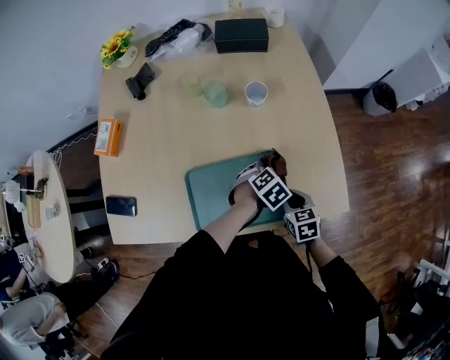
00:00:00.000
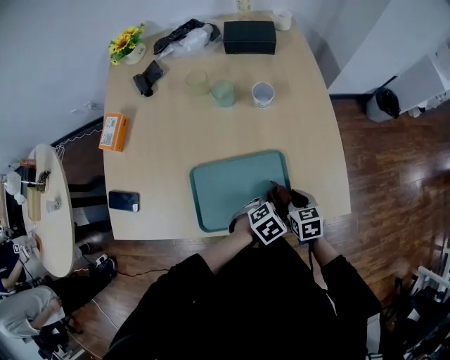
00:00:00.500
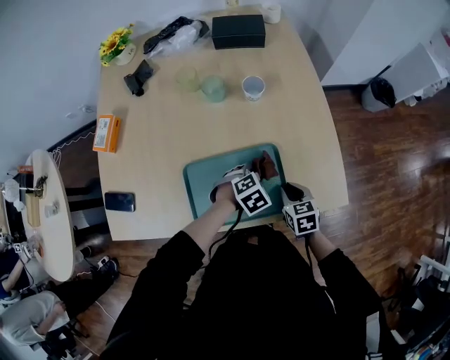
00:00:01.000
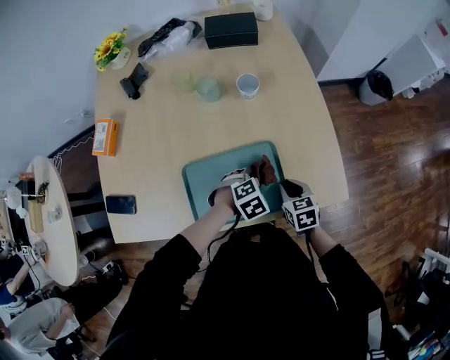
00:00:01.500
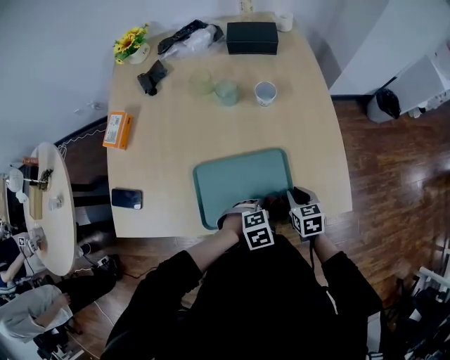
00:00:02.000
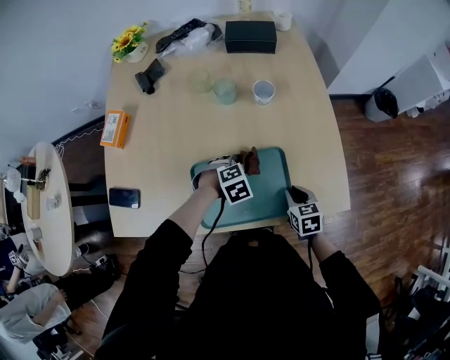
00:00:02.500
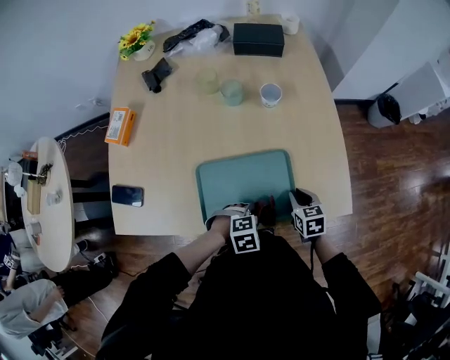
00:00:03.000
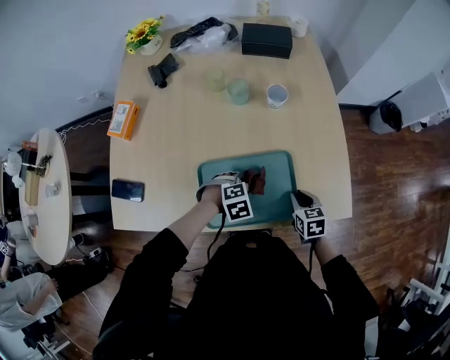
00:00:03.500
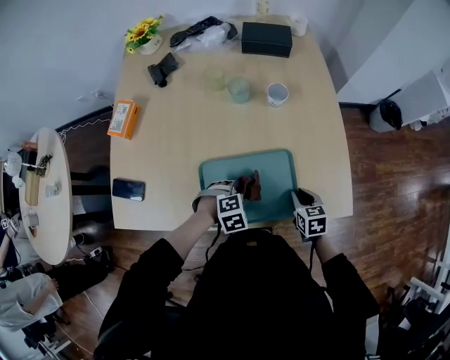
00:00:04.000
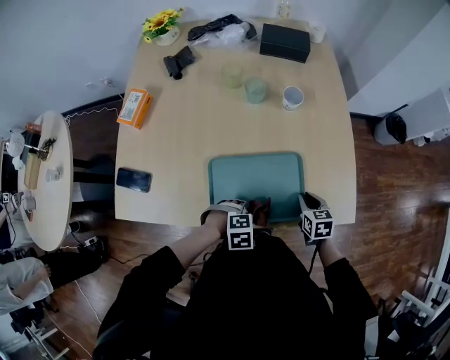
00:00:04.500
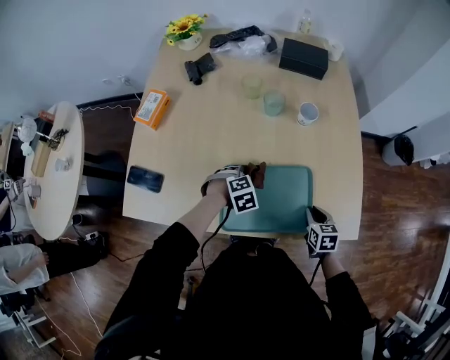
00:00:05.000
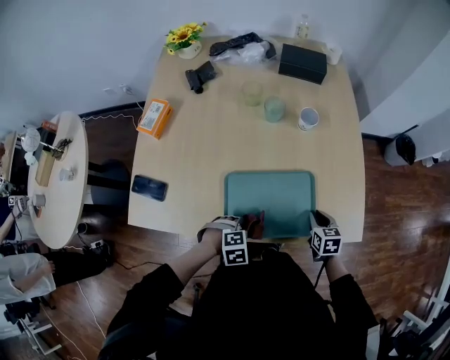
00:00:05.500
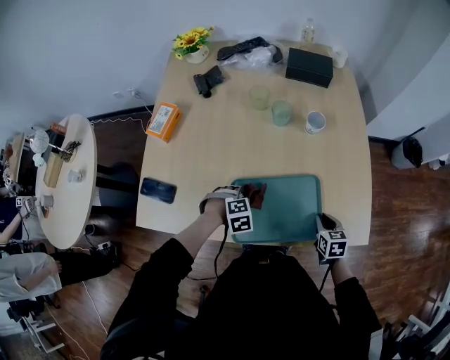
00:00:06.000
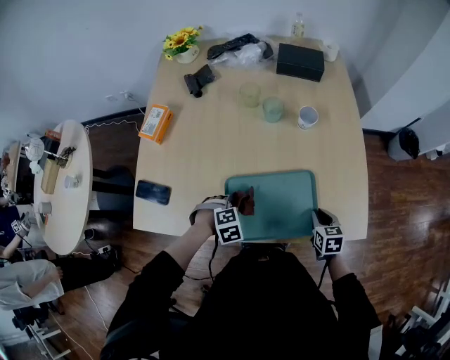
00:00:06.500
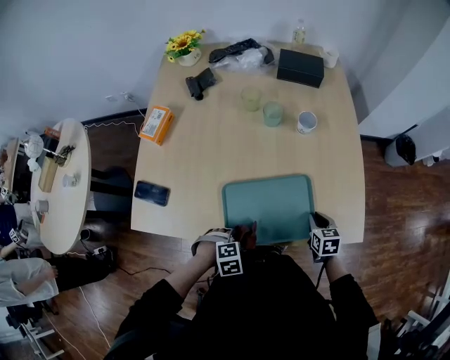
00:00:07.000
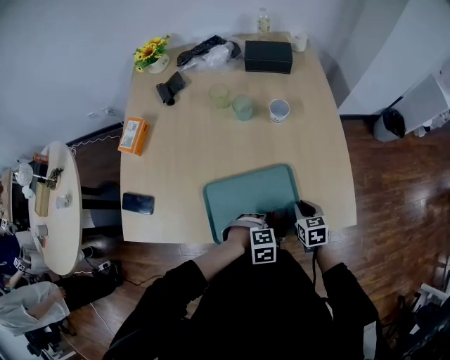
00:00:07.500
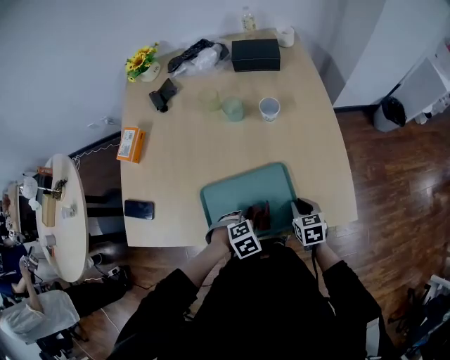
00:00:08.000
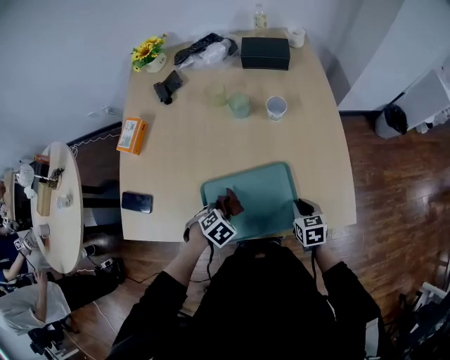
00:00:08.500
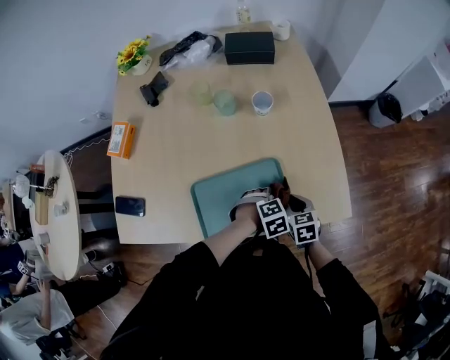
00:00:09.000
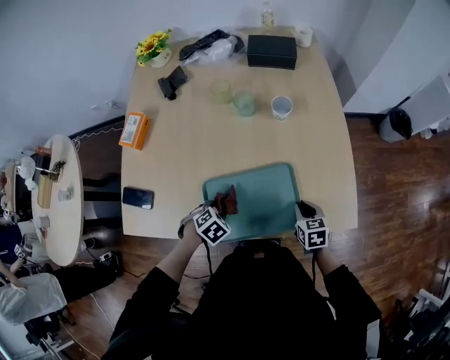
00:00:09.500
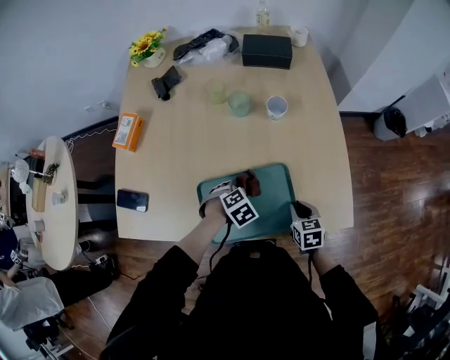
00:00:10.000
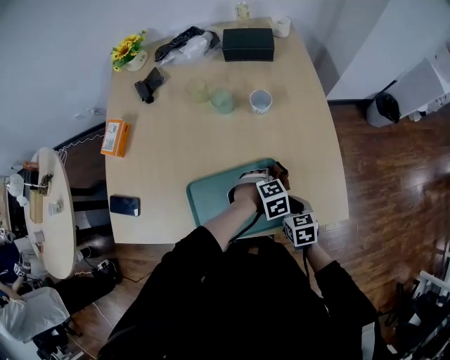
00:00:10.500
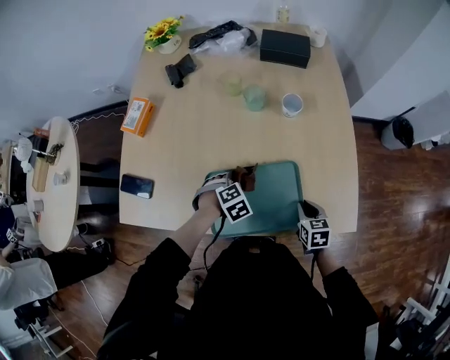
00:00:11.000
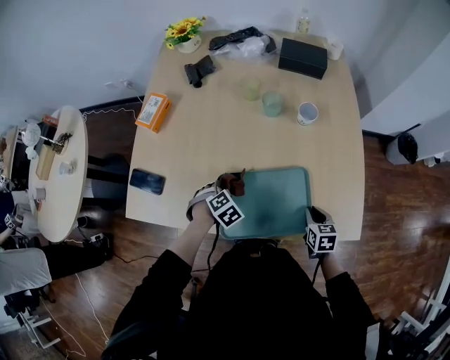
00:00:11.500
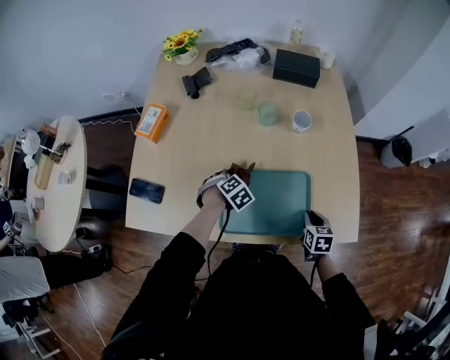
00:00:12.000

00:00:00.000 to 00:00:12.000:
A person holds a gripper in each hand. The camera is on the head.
00:00:00.000 to 00:00:02.000: The left gripper goes forward and backward, some 15 cm each way, reversing 2 times, and rotates approximately 20 degrees.
00:00:02.000 to 00:00:04.000: The left gripper goes forward and backward, roughly 15 cm each way, reversing 2 times.
00:00:04.000 to 00:00:06.000: The left gripper moves some 10 cm.
00:00:06.000 to 00:00:08.000: The left gripper ends up some 15 cm from where it was.
00:00:08.000 to 00:00:10.000: The left gripper shifts by approximately 10 cm.
00:00:10.000 to 00:00:12.000: The left gripper ends up about 10 cm from where it was.

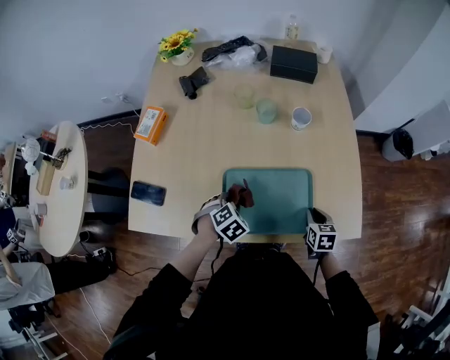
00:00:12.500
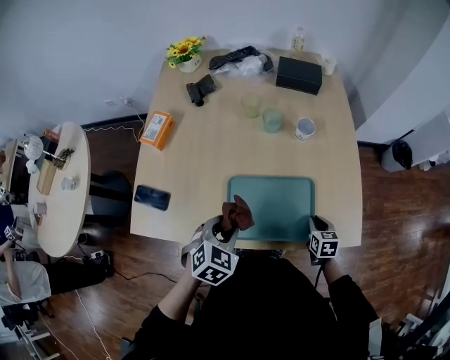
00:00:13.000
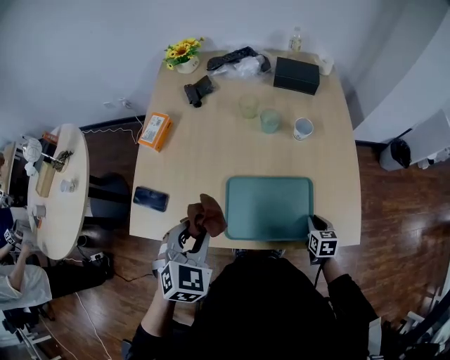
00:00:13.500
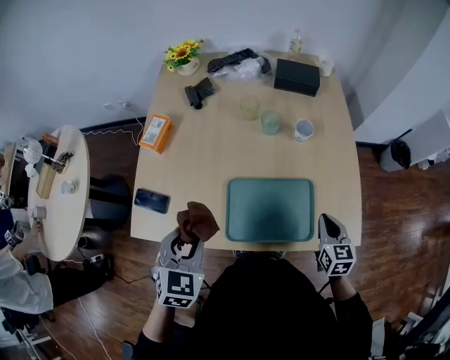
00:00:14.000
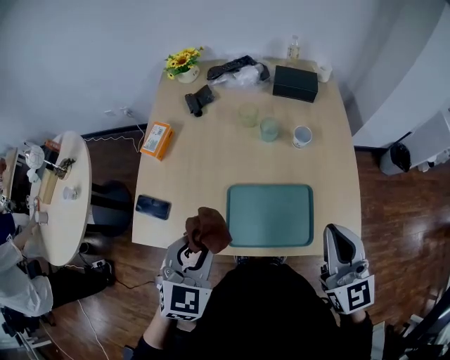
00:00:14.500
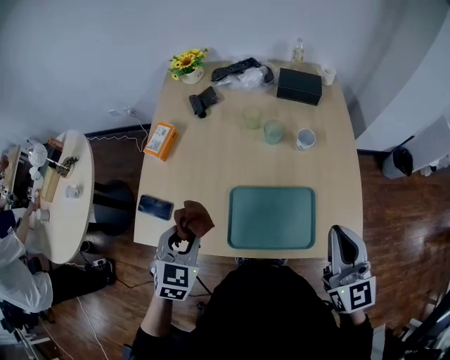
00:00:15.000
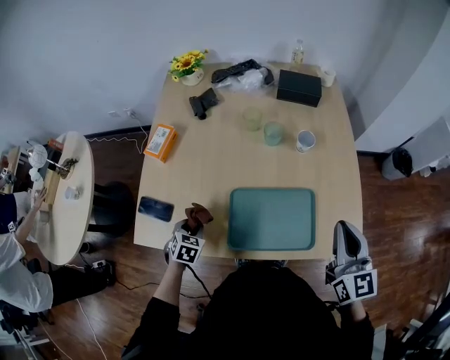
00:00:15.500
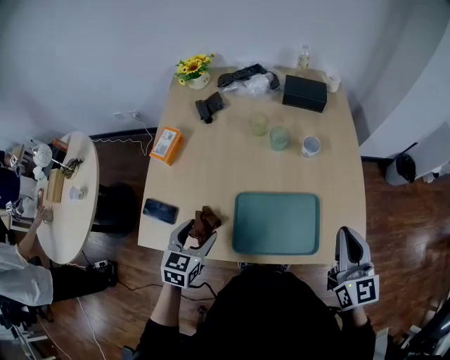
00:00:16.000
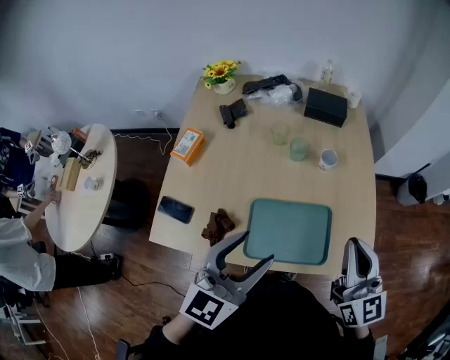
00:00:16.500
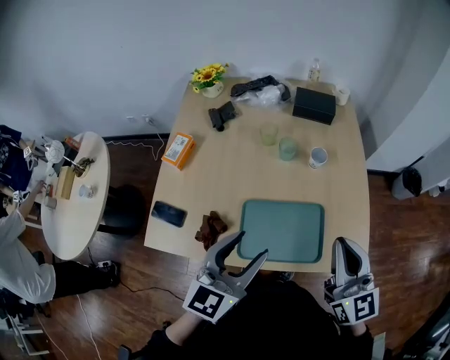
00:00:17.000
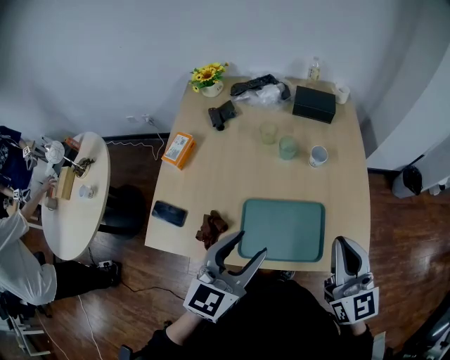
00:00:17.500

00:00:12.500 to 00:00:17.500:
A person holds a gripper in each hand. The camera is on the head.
00:00:12.500 to 00:00:15.000: The left gripper is displaced upward and to the left by some 25 cm, and points its fingers approximately 30 degrees further upward. Meanwhile the right gripper is displaced upward by some 35 cm, and points its fingers about 50 degrees further upward.
00:00:15.000 to 00:00:17.500: The left gripper swings up and down, roughly 35 cm each way, with 2 reversals, swivels roughly 40 degrees, and opens.

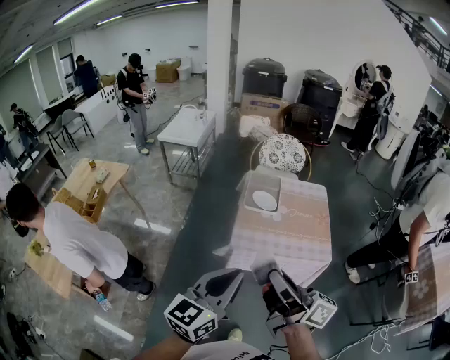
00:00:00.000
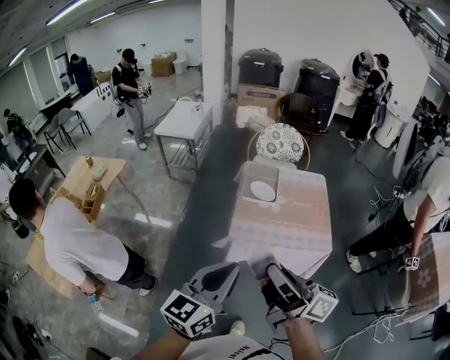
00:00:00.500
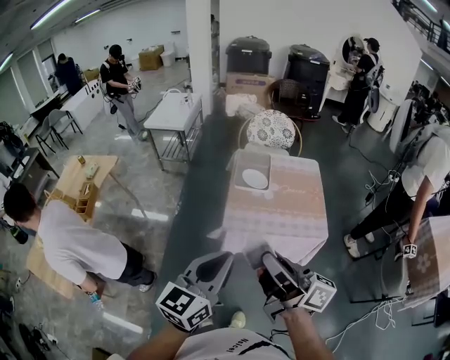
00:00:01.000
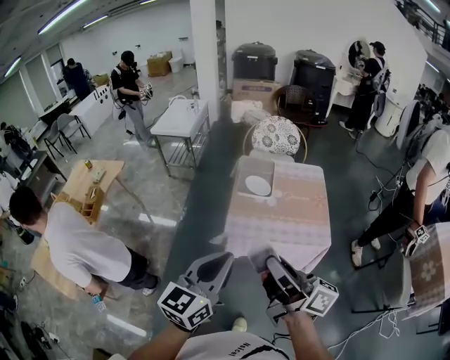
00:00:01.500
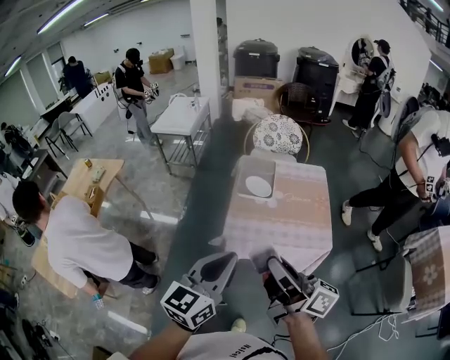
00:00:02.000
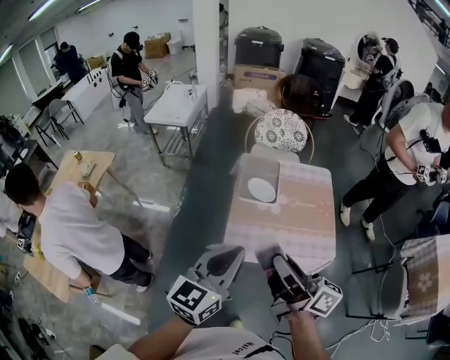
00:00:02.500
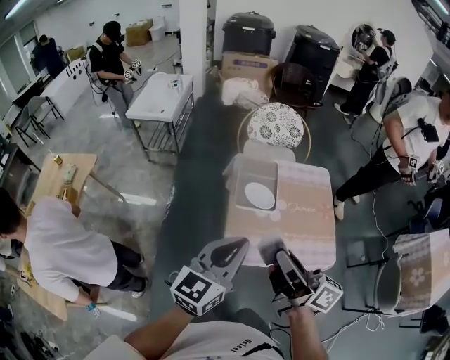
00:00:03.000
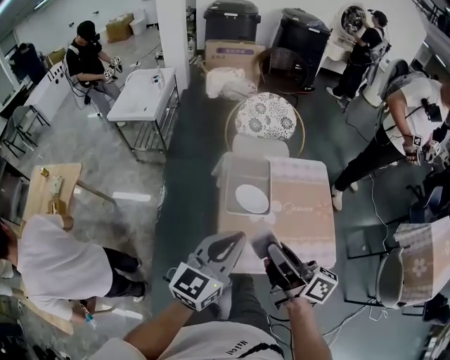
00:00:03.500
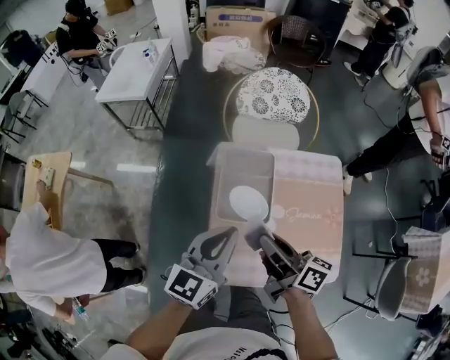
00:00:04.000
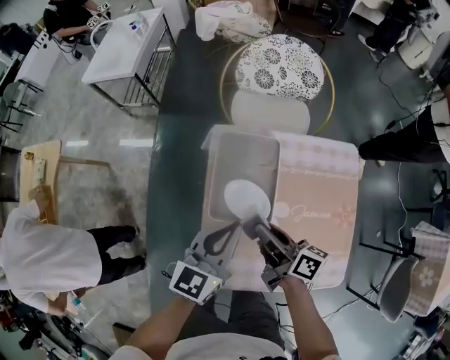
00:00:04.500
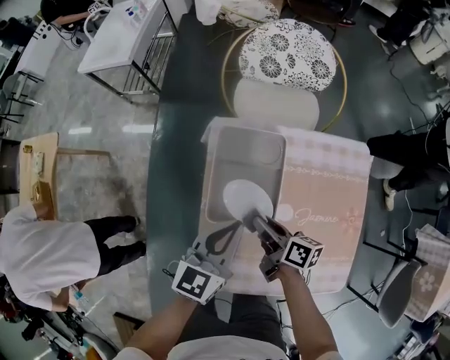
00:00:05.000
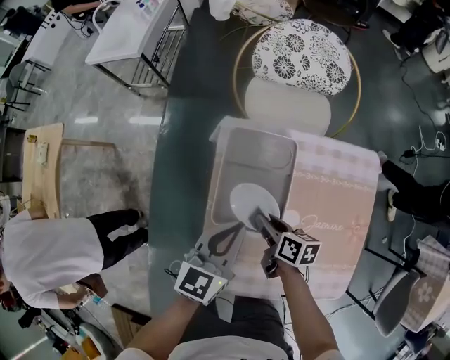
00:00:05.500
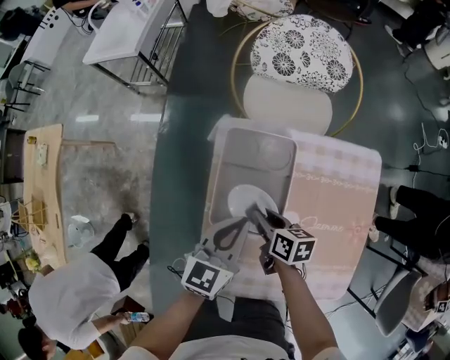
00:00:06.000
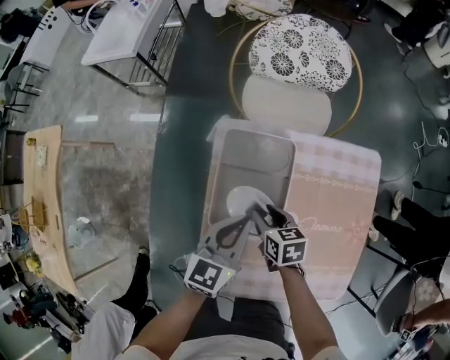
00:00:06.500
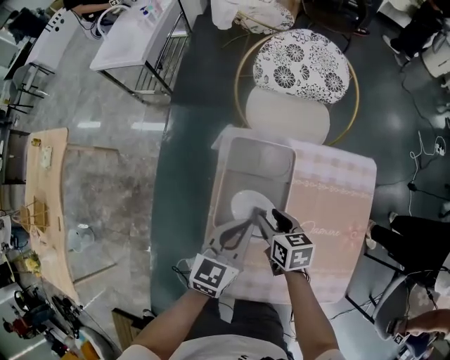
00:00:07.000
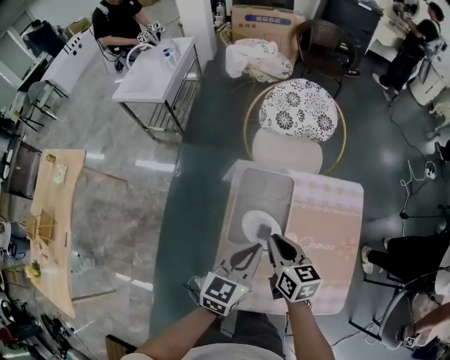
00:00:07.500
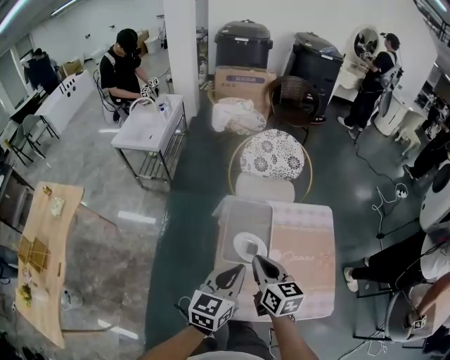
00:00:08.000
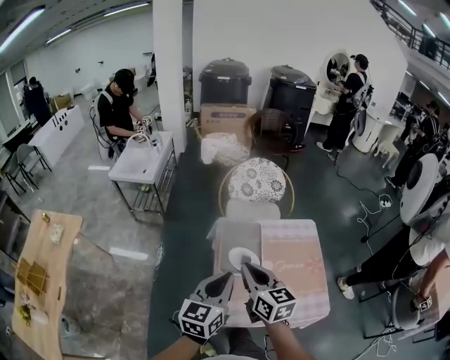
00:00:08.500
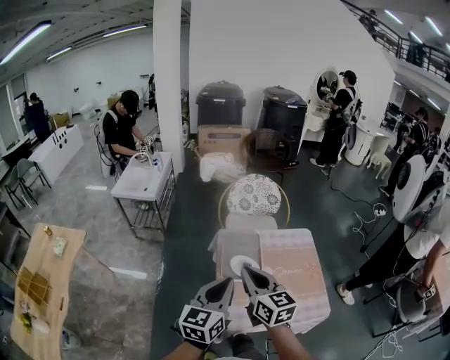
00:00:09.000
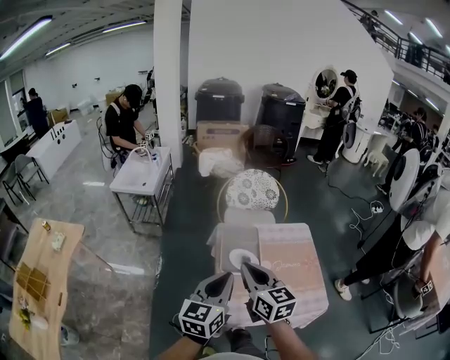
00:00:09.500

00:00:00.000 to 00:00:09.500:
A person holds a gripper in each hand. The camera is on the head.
00:00:00.000 to 00:00:02.000: The two grippers go about 5 cm to the right.
00:00:02.000 to 00:00:04.000: The two grippers travel together, forward, some 40 cm. The right gripper is displaced downward by approximately 20 cm, and changes its angle by some 20 degrees.
00:00:04.000 to 00:00:05.500: The right gripper travels downward by roughly 25 cm, and tips its fingers downward by approximately 30 degrees. Meanwhile the left gripper moves downward and forward, roughly 20 cm.
00:00:05.500 to 00:00:07.500: The right gripper moves upward, some 15 cm, rotates about 30 degrees, and opens, then closes once more; the left gripper is displaced upward by approximately 5 cm.
00:00:07.500 to 00:00:09.500: The left gripper travels upward, backward and to the left by approximately 30 cm. Meanwhile the right gripper heads upward and backward, covering some 30 cm, and rotates approximately 30 degrees.
